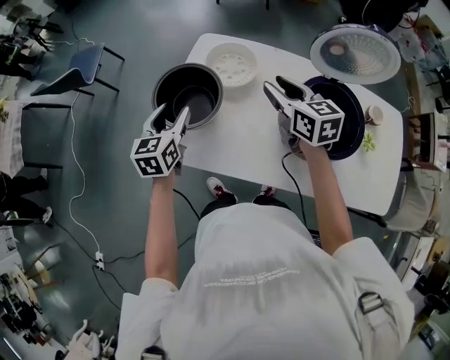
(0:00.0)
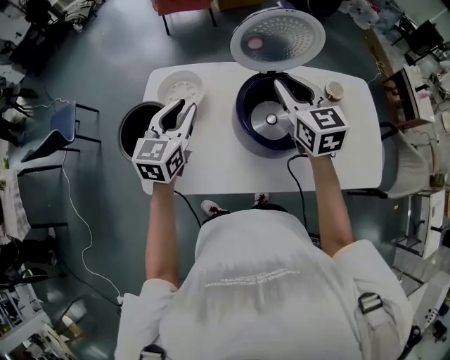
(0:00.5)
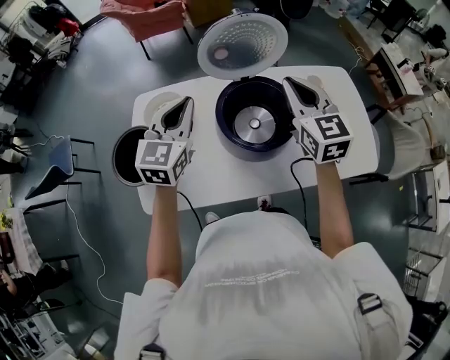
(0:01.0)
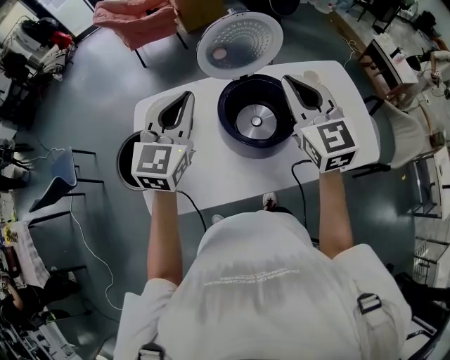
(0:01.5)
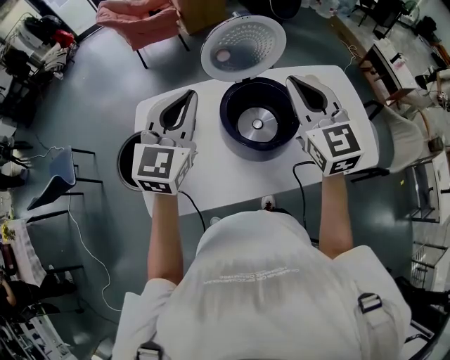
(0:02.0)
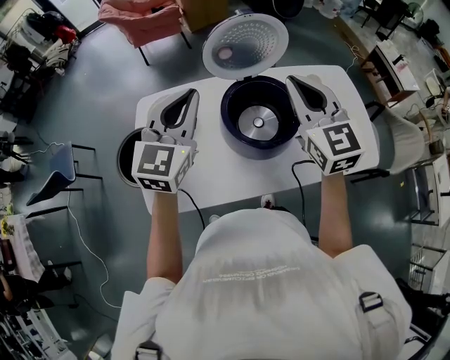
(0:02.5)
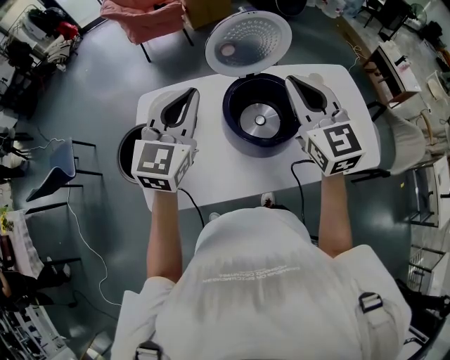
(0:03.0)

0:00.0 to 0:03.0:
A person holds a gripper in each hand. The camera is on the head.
0:00.0 to 0:01.5: The left gripper changes place by roughly 35 cm, swivels approximately 50 degrees, and closes; the right gripper changes place by about 30 cm, rotates approximately 40 degrees, and closes.
0:01.5 to 0:03.0: There are only small adjustments of the grippers.

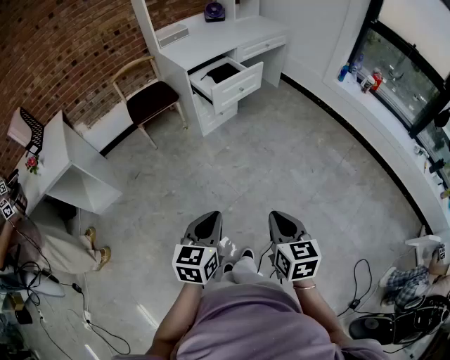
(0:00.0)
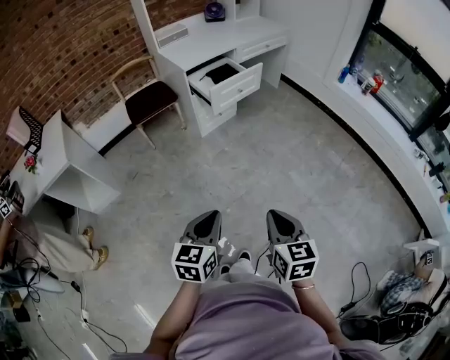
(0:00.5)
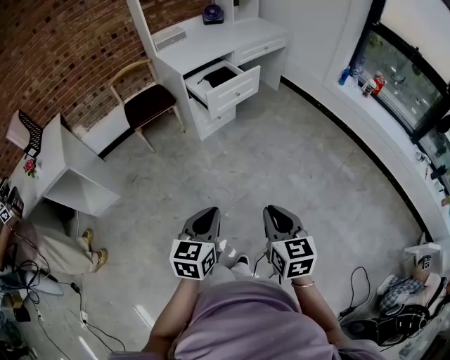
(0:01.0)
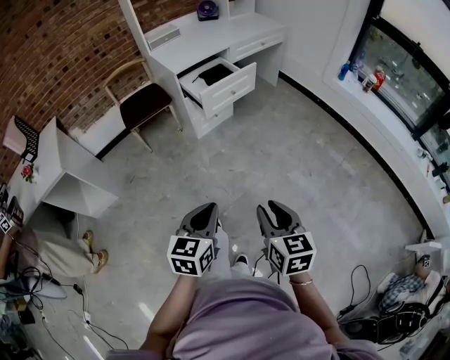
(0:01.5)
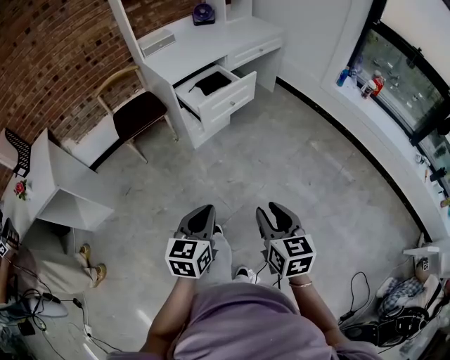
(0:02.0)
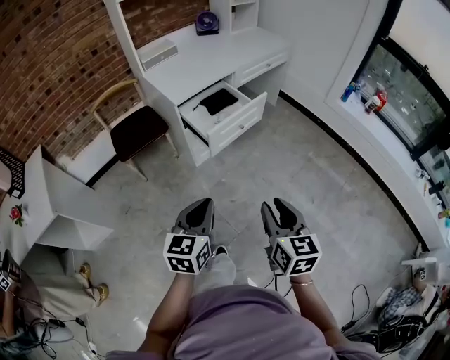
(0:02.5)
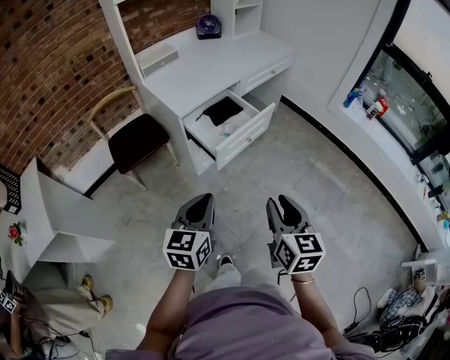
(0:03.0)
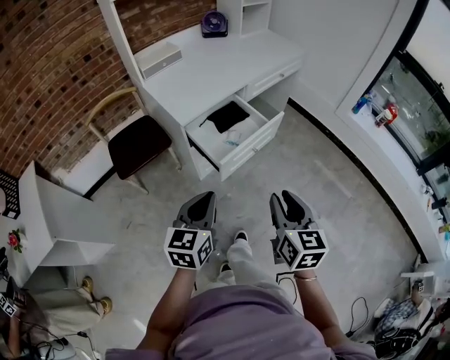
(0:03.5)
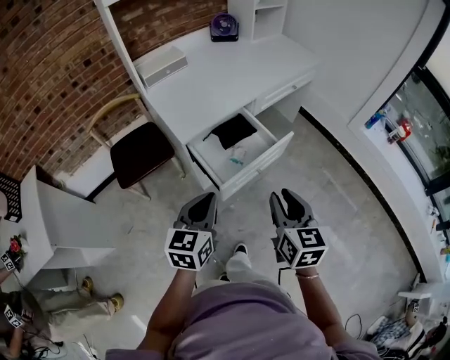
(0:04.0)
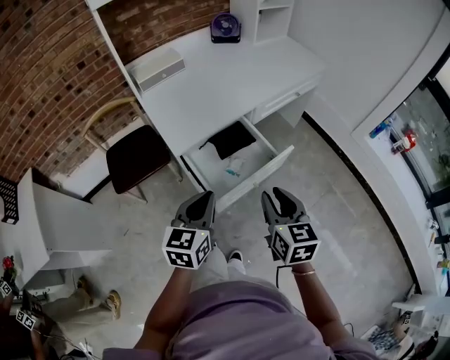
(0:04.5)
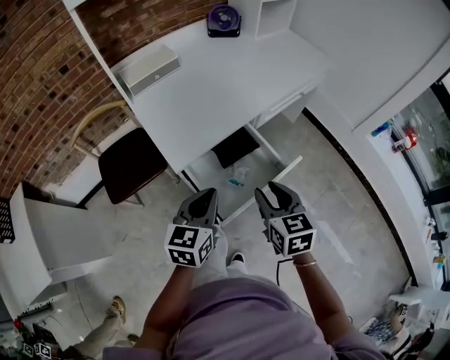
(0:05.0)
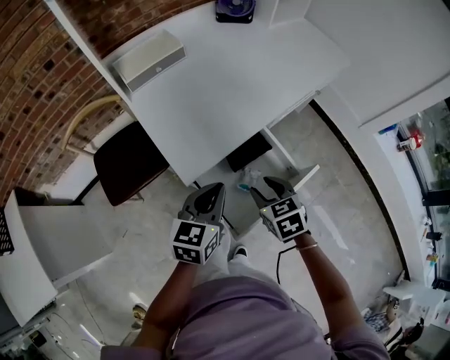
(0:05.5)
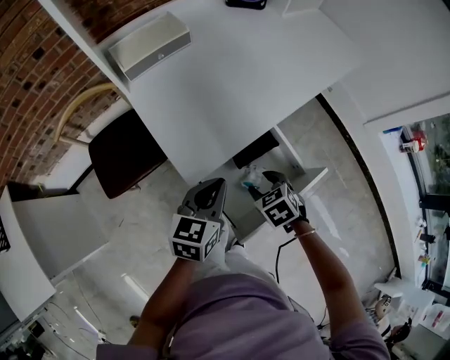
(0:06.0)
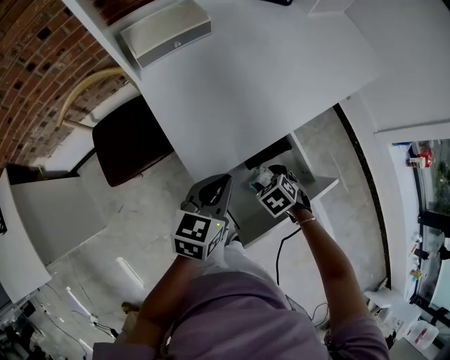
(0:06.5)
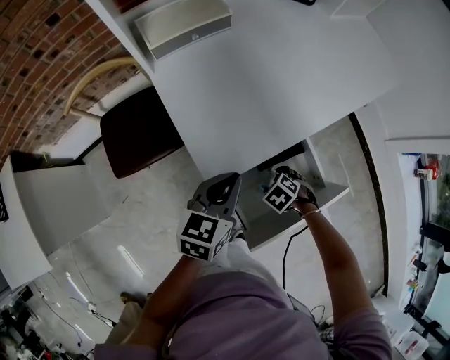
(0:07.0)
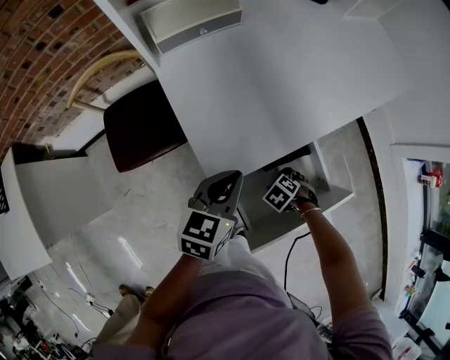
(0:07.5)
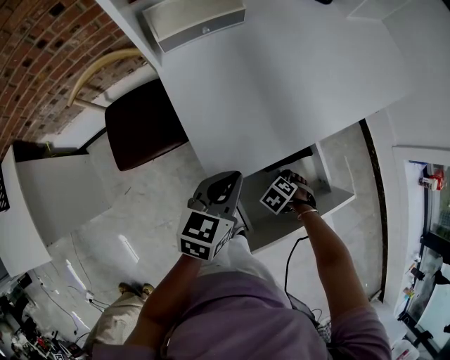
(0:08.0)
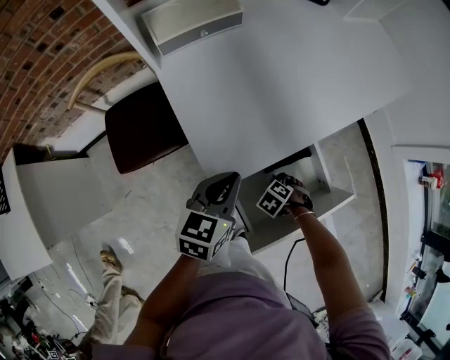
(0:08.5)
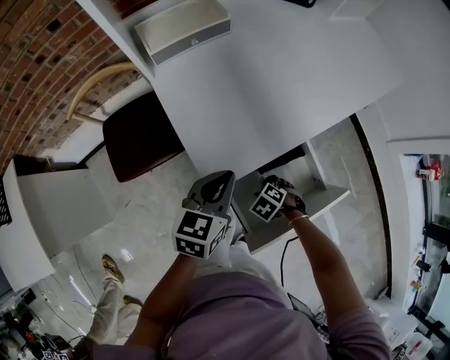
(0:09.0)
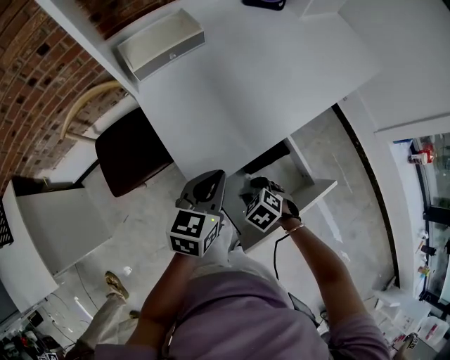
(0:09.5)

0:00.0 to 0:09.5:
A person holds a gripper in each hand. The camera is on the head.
0:00.0 to 0:02.0: The two grippers go roughly 15 cm forward. The right gripper opens.
0:02.0 to 0:04.0: Both grippers are carried forward, approximately 40 cm.
0:04.0 to 0:05.5: The right gripper goes approximately 30 cm forward, downward and to the left, and tips its fingers downward by approximately 30 degrees; the left gripper heads forward, covering about 25 cm.
0:05.5 to 0:07.5: The right gripper is displaced downward by about 25 cm, tips its fingers downward by approximately 40 degrees, and opens its fingers, while the left gripper changes place by roughly 10 cm.
0:07.5 to 0:09.5: The right gripper moves upward, some 10 cm, rotates approximately 20 degrees, and closes its fingers.

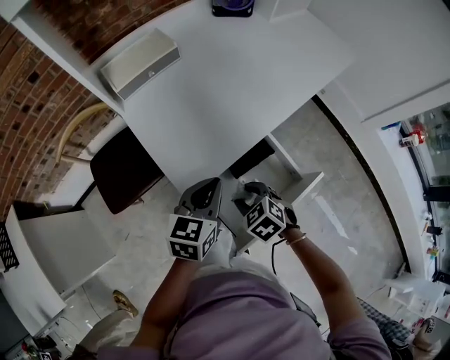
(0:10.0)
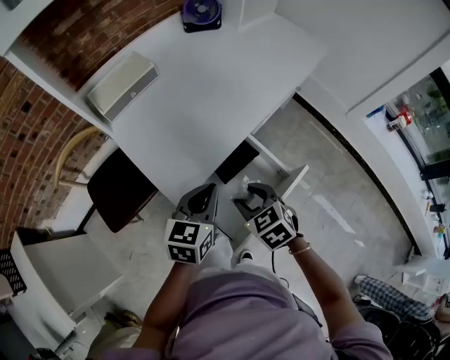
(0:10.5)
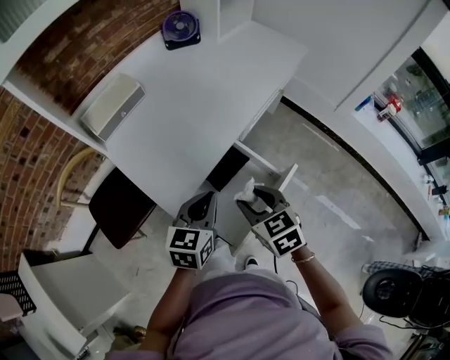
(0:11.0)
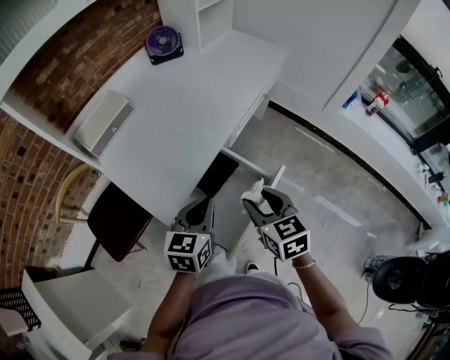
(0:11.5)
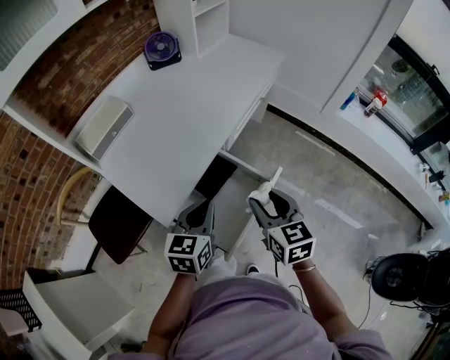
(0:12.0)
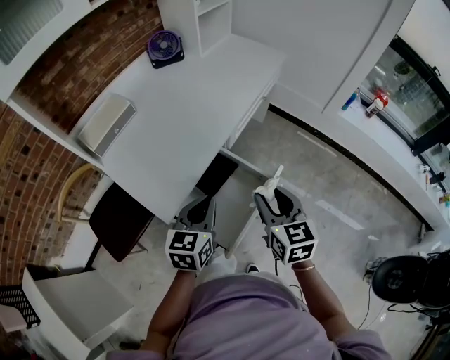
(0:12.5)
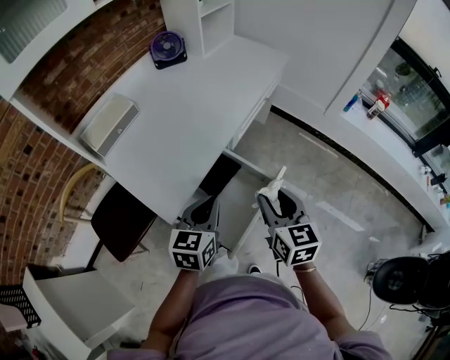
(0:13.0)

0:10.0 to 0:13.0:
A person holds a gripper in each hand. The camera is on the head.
0:10.0 to 0:11.5: The left gripper heads to the right, covering approximately 10 cm. The right gripper travels upward and to the right by about 20 cm, and turns by some 50 degrees.
0:11.5 to 0:13.0: The right gripper changes place by roughly 5 cm.

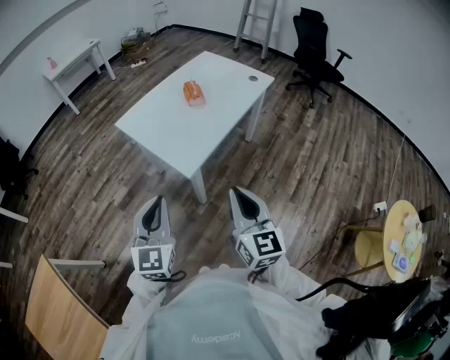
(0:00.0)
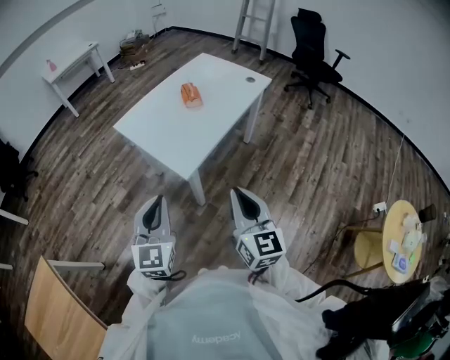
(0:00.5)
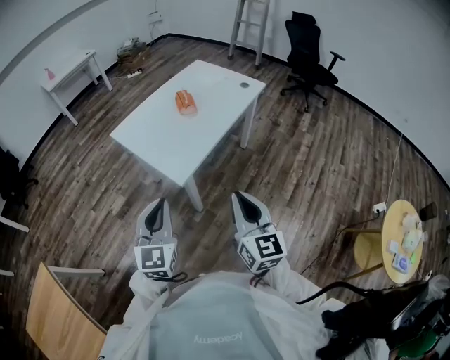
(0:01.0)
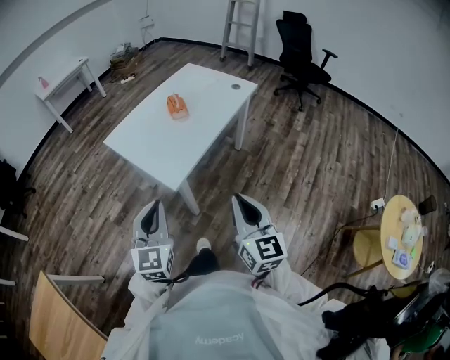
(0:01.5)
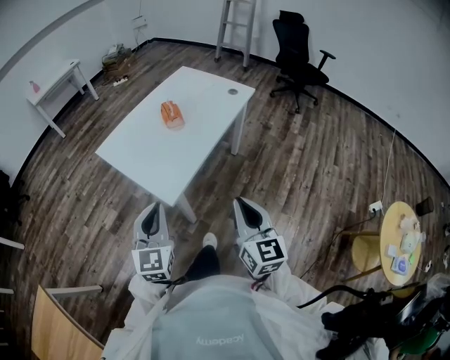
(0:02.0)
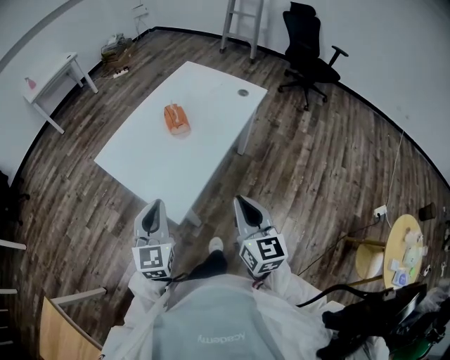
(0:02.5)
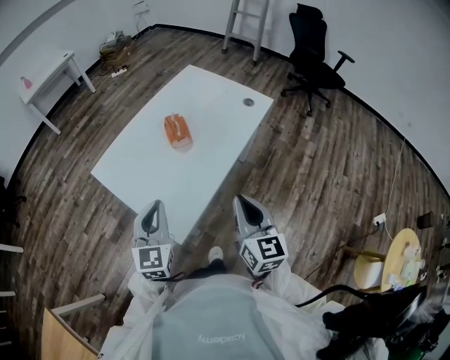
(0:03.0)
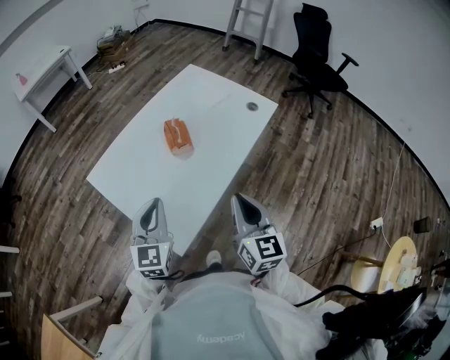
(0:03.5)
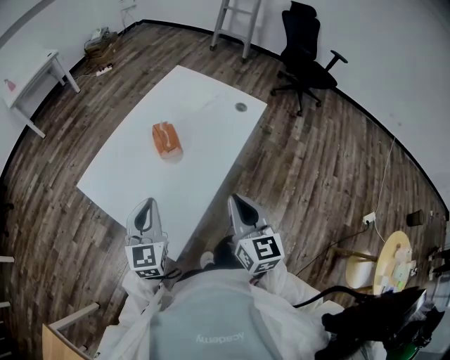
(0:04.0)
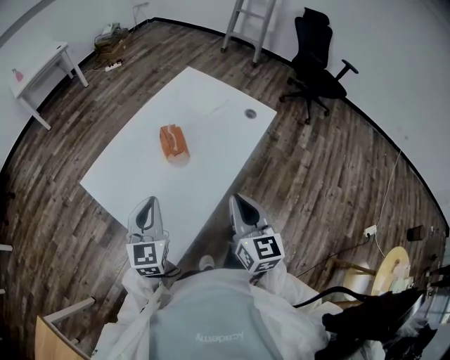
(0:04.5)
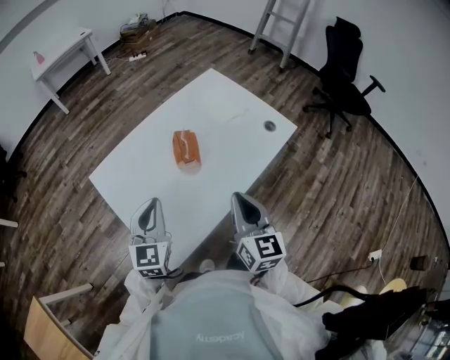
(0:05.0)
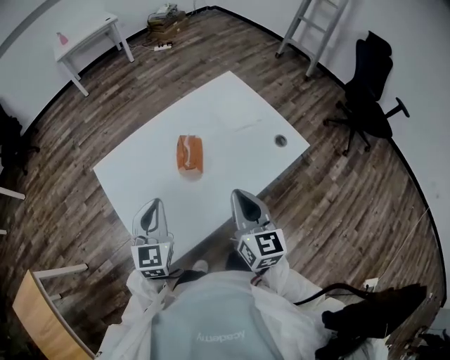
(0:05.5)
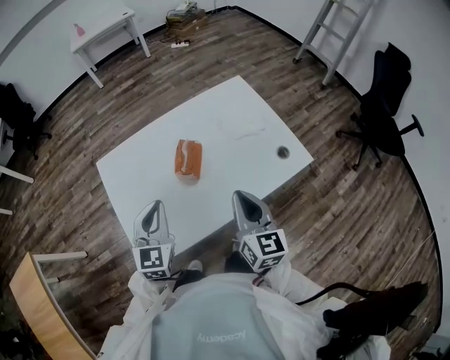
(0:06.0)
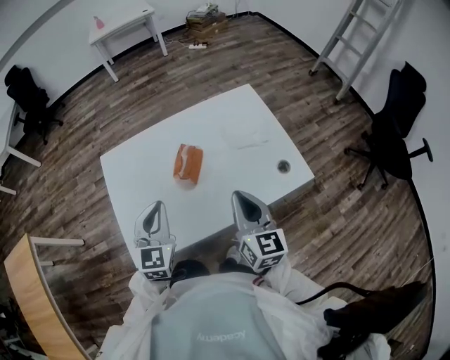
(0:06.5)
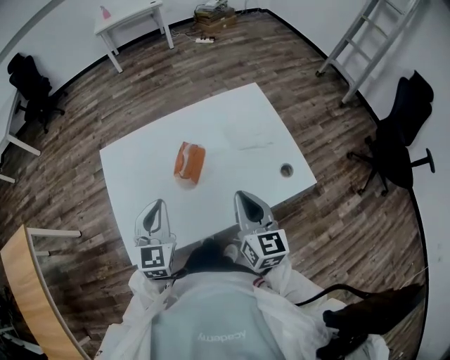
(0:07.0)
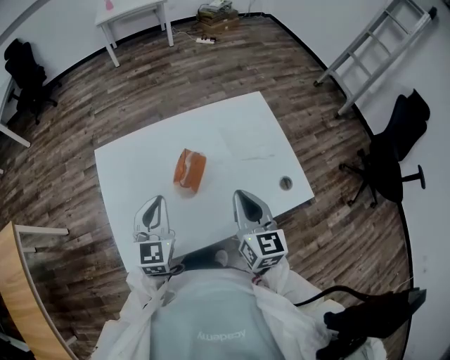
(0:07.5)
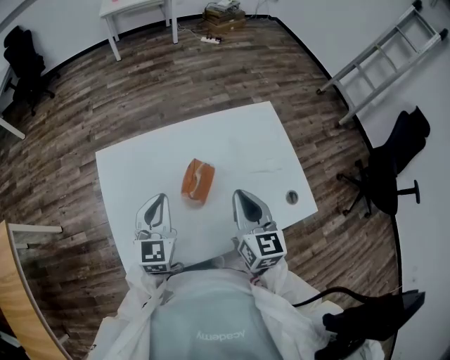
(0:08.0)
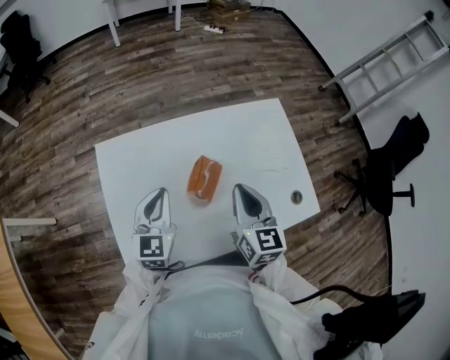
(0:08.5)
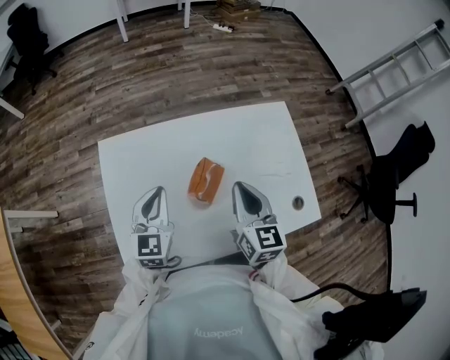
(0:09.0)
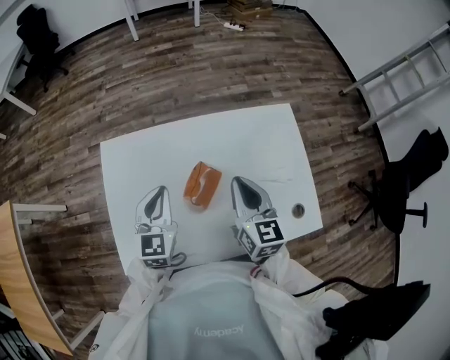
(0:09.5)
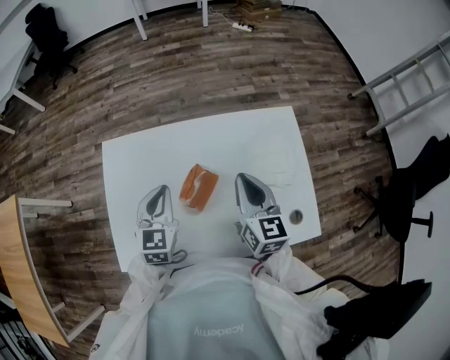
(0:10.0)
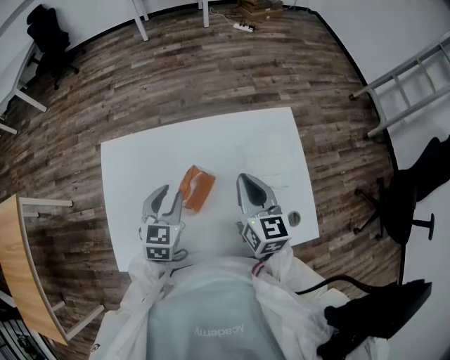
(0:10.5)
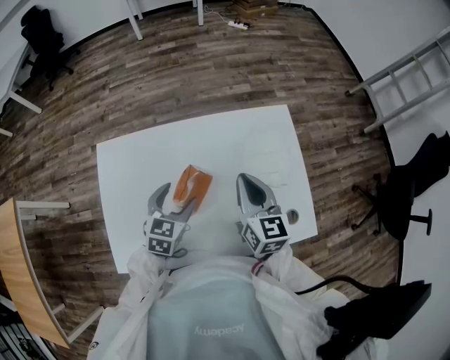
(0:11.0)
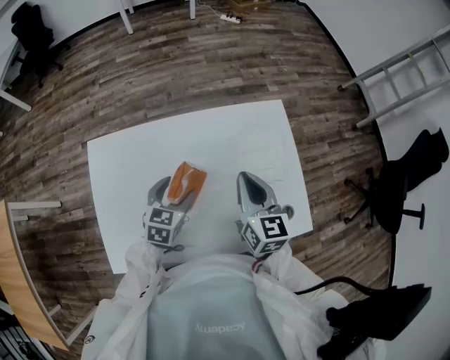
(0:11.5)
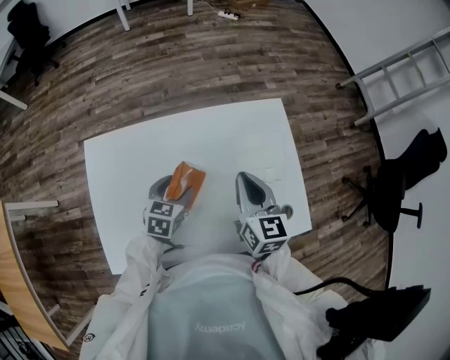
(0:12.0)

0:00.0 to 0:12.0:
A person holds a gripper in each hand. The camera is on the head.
0:00.0 to 0:02.0: The right gripper is displaced to the right and forward by roughly 10 cm; the left gripper is displaced forward and to the right by about 10 cm.
0:02.0 to 0:04.0: The grippers both shift forward by some 25 cm.
0:04.0 to 0:06.0: The left gripper changes place by approximately 10 cm, and swivels approximately 30 degrees. Meanwhile the right gripper ends up approximately 20 cm from where it was, and rotates about 30 degrees.
0:06.0 to 0:08.0: Both grippers move forward, about 10 cm.
0:08.0 to 0:10.0: The right gripper shifts roughly 10 cm forward.
0:10.0 to 0:12.0: The left gripper moves downward and to the right, approximately 15 cm, swivels some 30 degrees, and opens.
